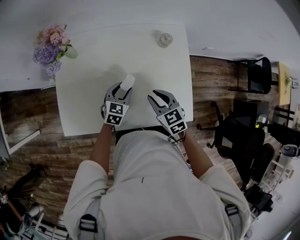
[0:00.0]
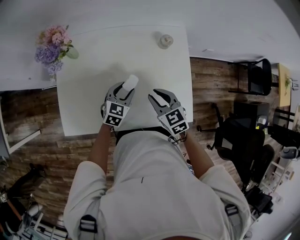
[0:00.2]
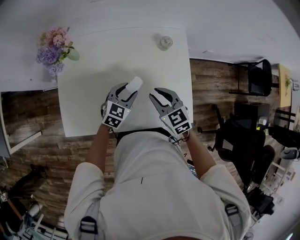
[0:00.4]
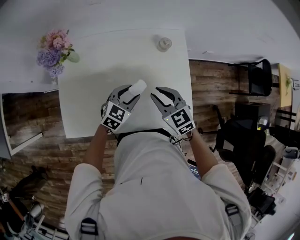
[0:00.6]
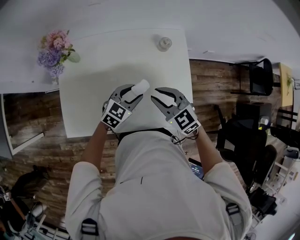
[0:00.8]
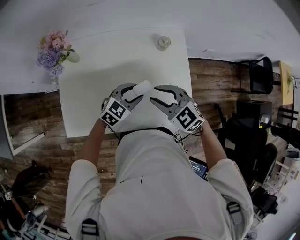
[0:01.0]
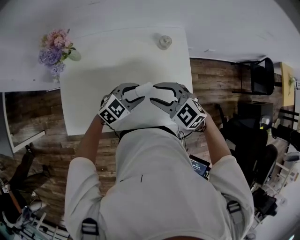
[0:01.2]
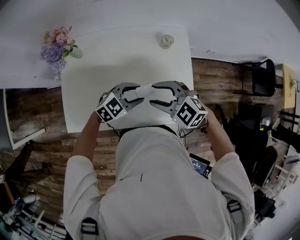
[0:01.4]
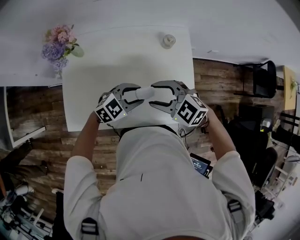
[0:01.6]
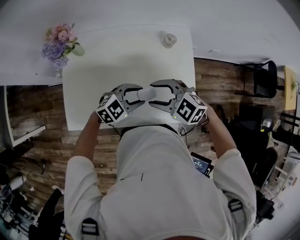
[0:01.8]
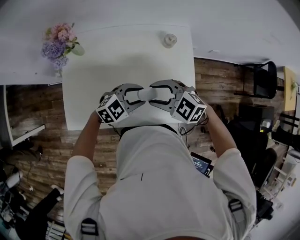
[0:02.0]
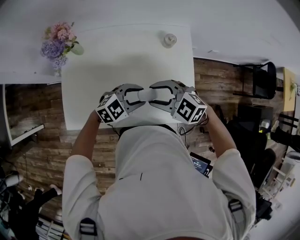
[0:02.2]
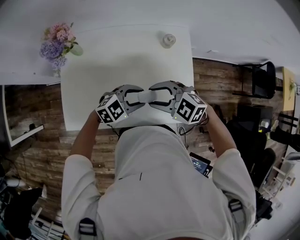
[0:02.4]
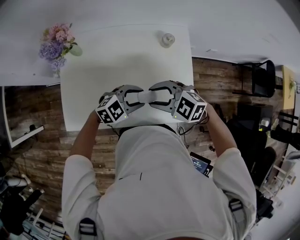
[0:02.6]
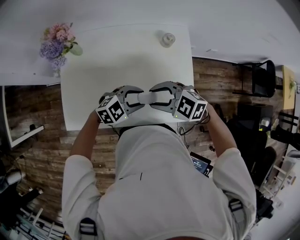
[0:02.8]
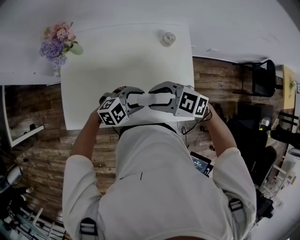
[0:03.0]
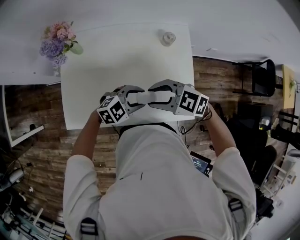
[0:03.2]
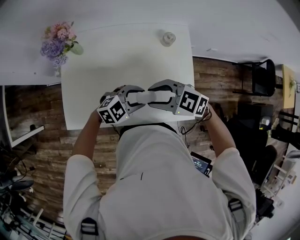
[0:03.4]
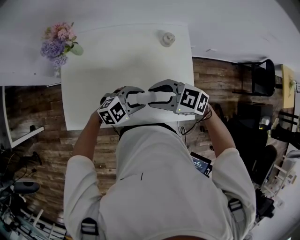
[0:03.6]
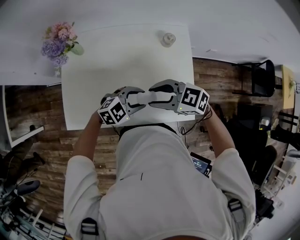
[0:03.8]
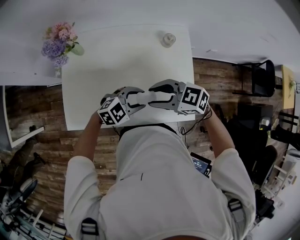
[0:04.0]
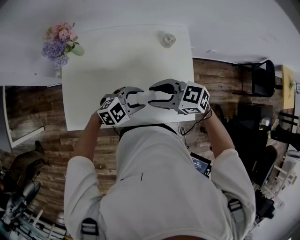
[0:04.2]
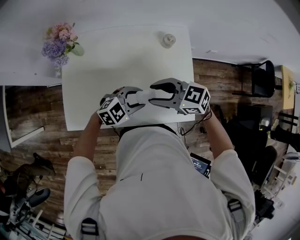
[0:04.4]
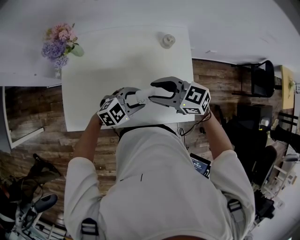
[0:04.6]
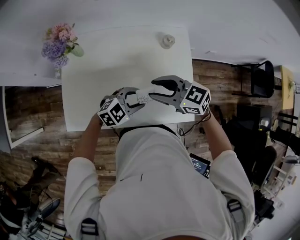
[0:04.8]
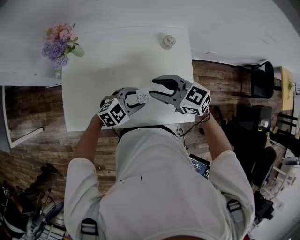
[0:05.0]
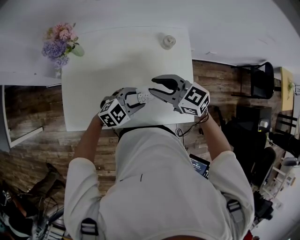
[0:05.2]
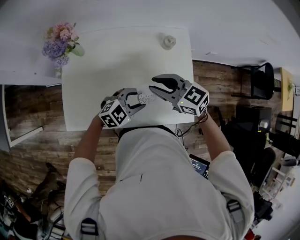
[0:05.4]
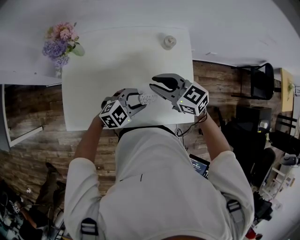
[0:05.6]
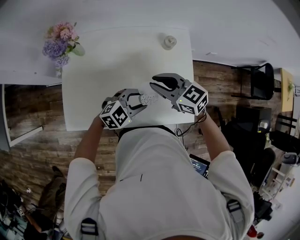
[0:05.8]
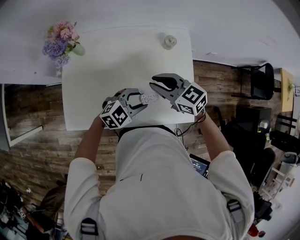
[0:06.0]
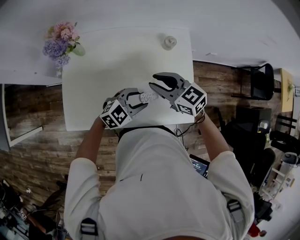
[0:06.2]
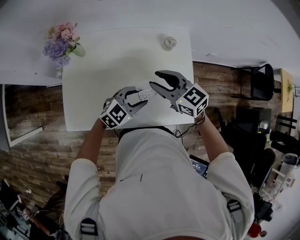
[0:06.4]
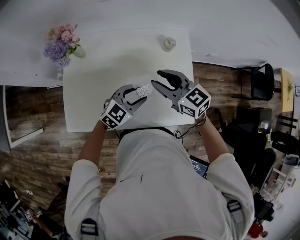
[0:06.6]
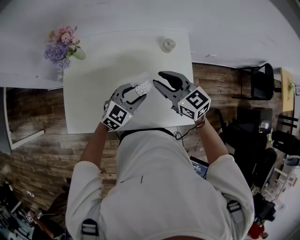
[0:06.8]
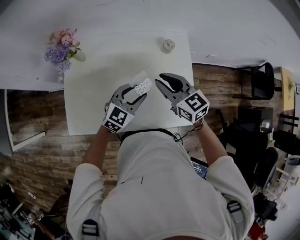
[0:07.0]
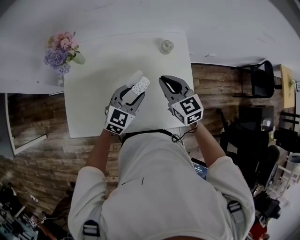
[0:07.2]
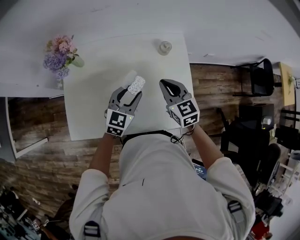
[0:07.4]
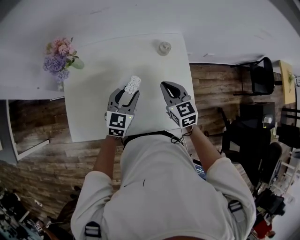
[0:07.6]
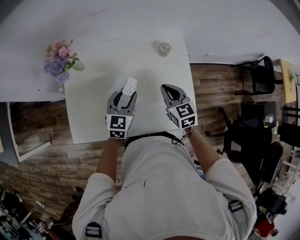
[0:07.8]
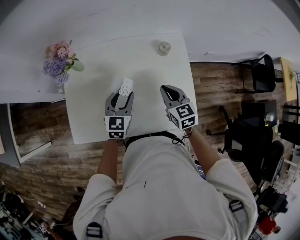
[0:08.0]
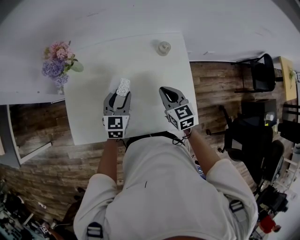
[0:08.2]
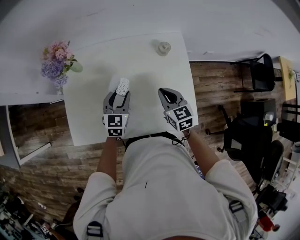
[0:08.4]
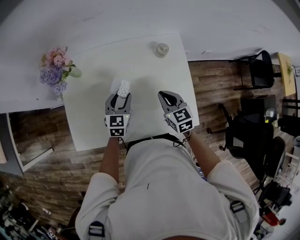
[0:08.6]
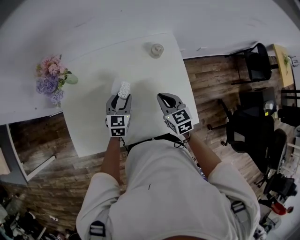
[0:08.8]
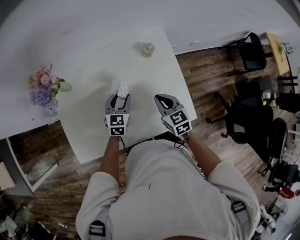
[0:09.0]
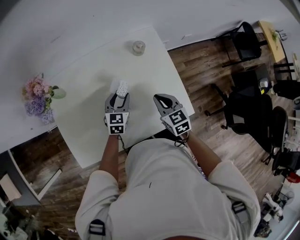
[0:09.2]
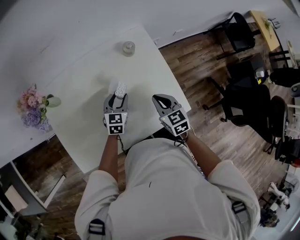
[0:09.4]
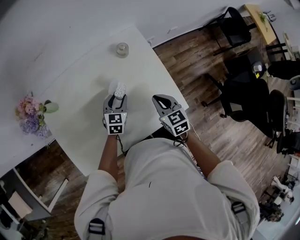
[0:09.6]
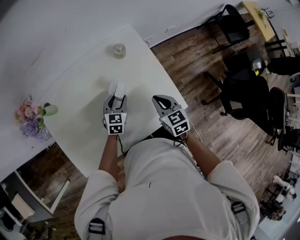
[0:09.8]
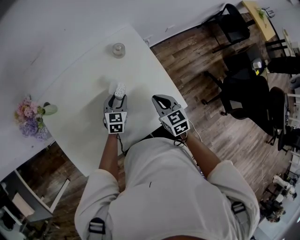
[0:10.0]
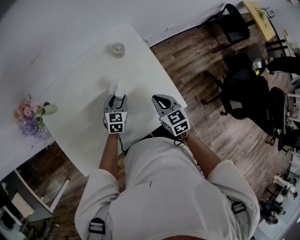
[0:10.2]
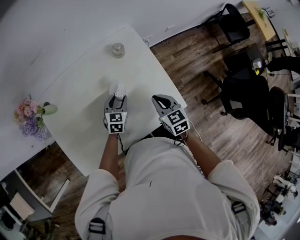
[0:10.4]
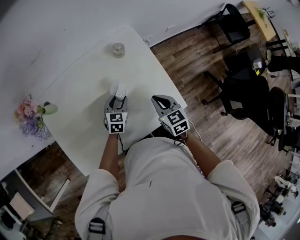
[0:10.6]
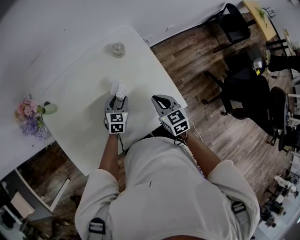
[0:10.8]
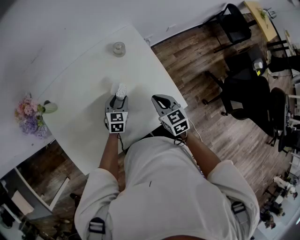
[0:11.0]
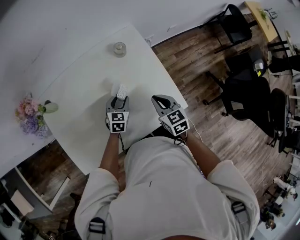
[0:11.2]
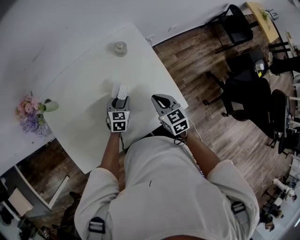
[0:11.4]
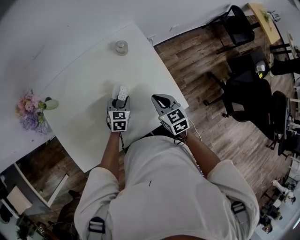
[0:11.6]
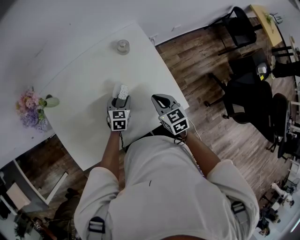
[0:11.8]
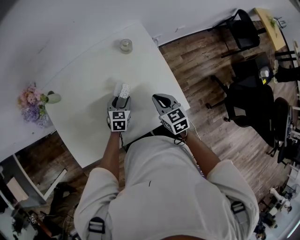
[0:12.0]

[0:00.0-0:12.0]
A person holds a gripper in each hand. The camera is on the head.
0:00.0 to 0:01.6: The grippers both shift upward by approximately 10 cm. The left gripper changes its angle by roughly 40 degrees, while the right gripper changes its angle by roughly 40 degrees, and opens.
0:01.6 to 0:03.0: The grippers make only small movements.
0:03.0 to 0:04.4: The grippers stay close to where they were, moving slightly.
0:04.4 to 0:06.0: The right gripper moves roughly 5 cm, and closes up.
0:06.0 to 0:07.6: The right gripper changes place by about 5 cm, and turns by approximately 30 degrees, while the left gripper moves about 10 cm, and rotates approximately 40 degrees.
0:07.6 to 0:09.0: The right gripper heads downward, covering approximately 5 cm. Meanwhile the left gripper moves downward, about 10 cm.
0:09.0 to 0:10.4: The left gripper goes some 10 cm to the right and downward, while the right gripper is displaced to the right by about 10 cm.
0:10.4 to 0:12.0: There are only small adjustments of the grippers.

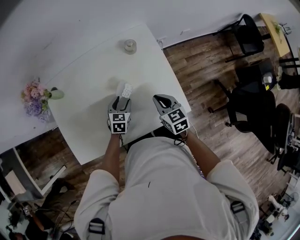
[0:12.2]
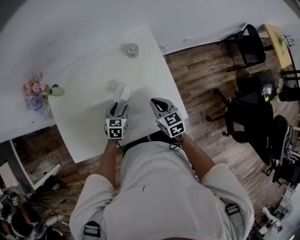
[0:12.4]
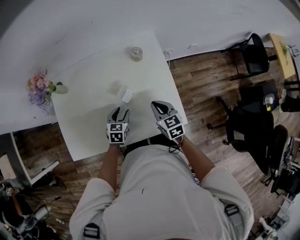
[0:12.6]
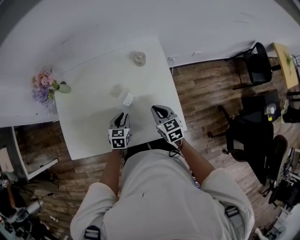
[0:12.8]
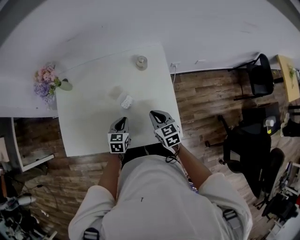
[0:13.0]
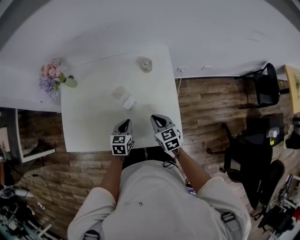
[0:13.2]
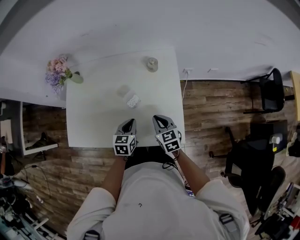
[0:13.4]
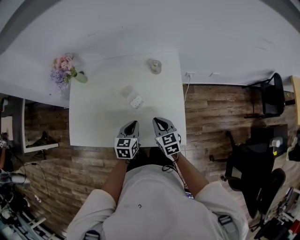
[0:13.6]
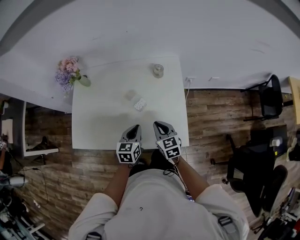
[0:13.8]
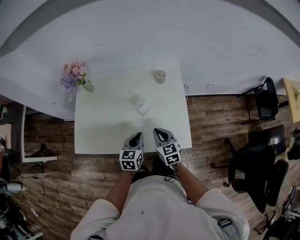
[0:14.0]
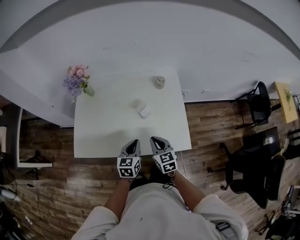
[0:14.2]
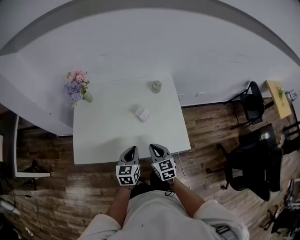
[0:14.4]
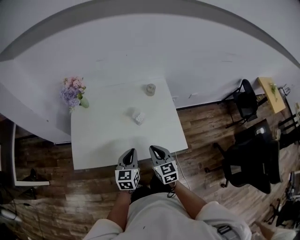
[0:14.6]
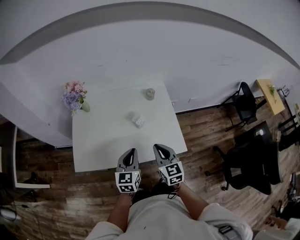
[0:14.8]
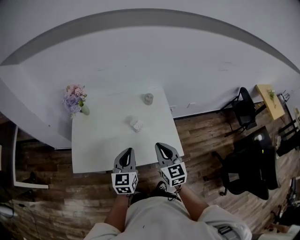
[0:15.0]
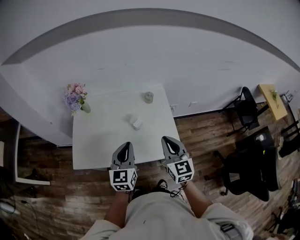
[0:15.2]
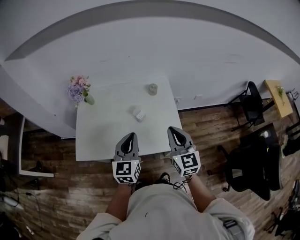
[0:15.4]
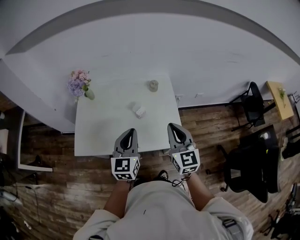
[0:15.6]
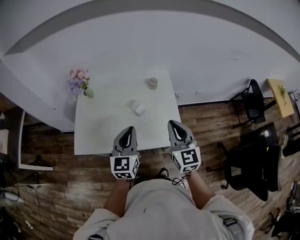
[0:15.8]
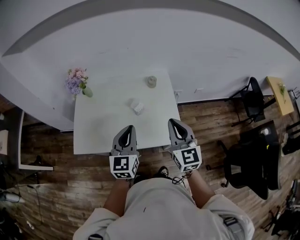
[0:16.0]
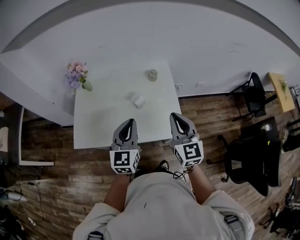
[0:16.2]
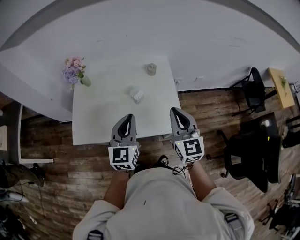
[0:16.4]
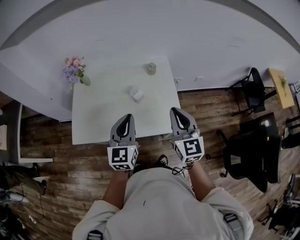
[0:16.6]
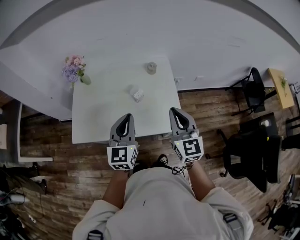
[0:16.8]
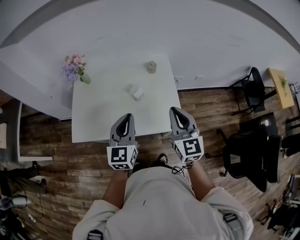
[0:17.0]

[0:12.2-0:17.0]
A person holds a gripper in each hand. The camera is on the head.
0:12.2 to 0:13.8: The left gripper heads upward and backward, covering about 15 cm, changes its angle by some 30 degrees, and closes up.
0:13.8 to 0:15.4: The grippers both shift upward and backward by roughly 25 cm. The right gripper turns by some 30 degrees. The left gripper turns by about 30 degrees.
0:15.4 to 0:17.0: The grippers stay close to where they were, moving slightly.

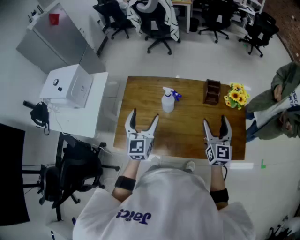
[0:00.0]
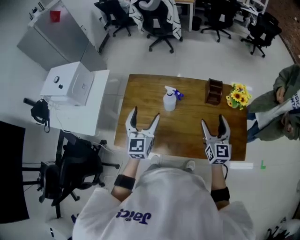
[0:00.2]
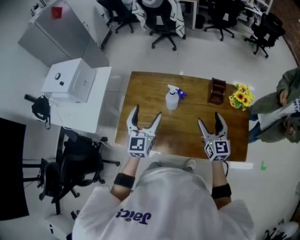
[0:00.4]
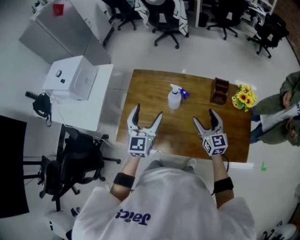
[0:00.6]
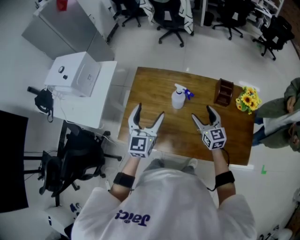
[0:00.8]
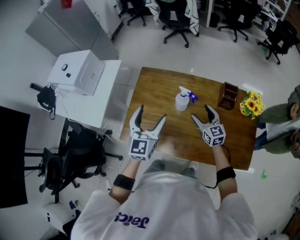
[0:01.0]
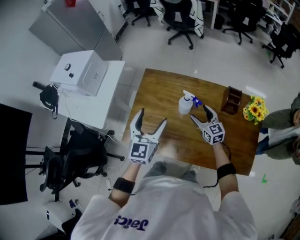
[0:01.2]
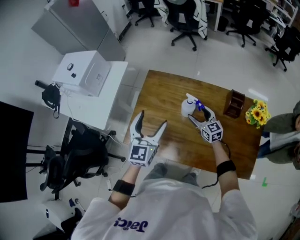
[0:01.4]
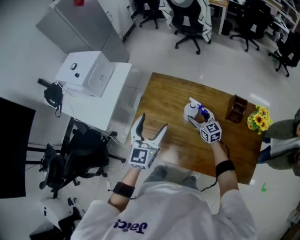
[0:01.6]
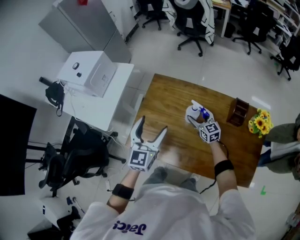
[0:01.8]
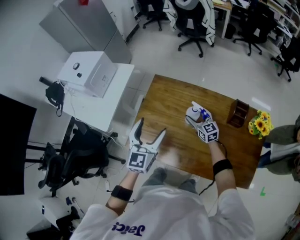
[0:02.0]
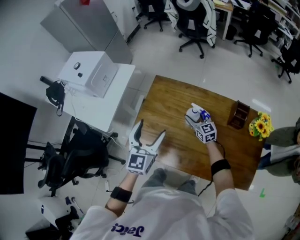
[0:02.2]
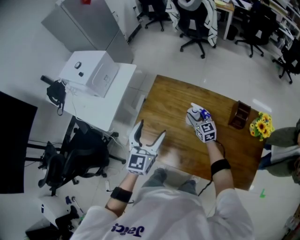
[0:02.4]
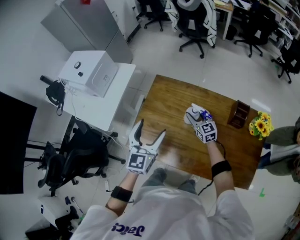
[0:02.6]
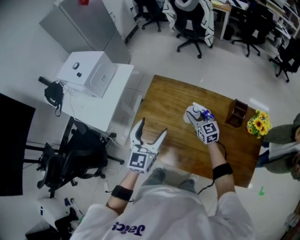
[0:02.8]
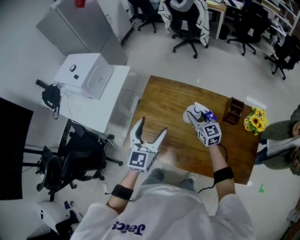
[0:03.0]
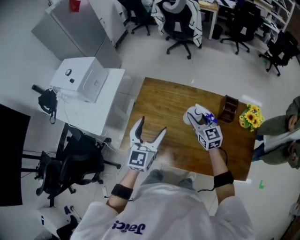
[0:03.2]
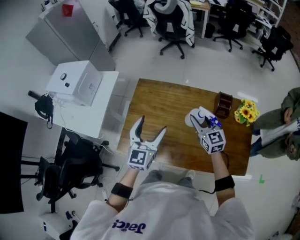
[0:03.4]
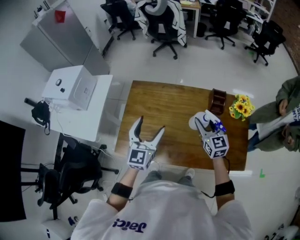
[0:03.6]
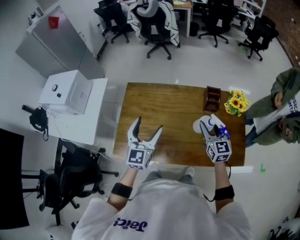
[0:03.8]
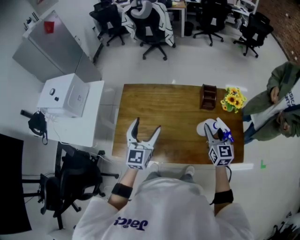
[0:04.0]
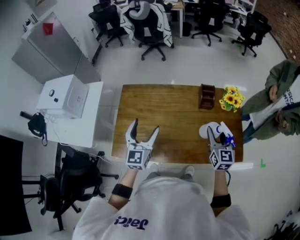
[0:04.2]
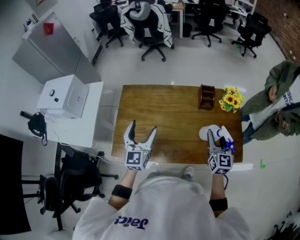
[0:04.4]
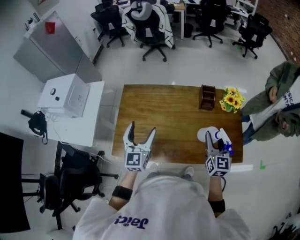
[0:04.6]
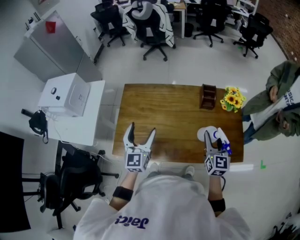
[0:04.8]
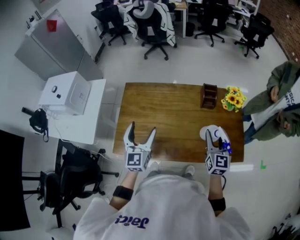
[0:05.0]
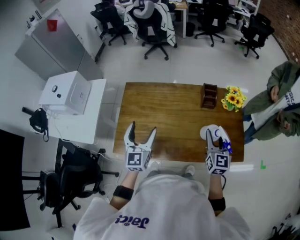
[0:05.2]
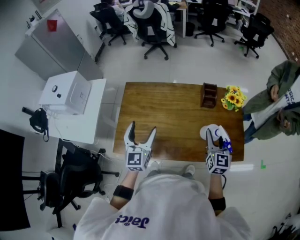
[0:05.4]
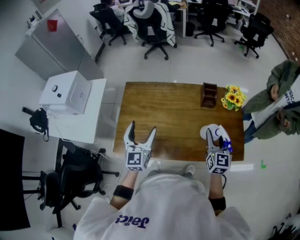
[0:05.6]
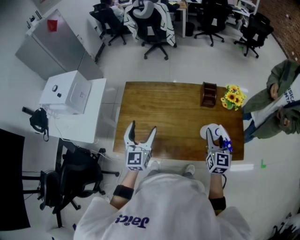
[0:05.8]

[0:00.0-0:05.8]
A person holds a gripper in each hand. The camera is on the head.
0:00.0 to 0:01.4: The right gripper goes approximately 30 cm downward, forward and to the left, and swivels roughly 40 degrees.
0:01.4 to 0:02.8: The right gripper ends up approximately 5 cm from where it was.
0:02.8 to 0:04.4: The left gripper ends up about 5 cm from where it was. Meanwhile the right gripper ends up approximately 35 cm from where it was, and rotates about 40 degrees.
0:04.4 to 0:05.8: The grippers move only a little.

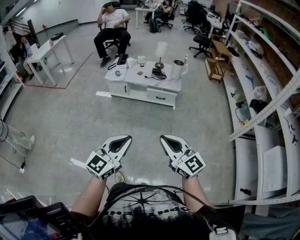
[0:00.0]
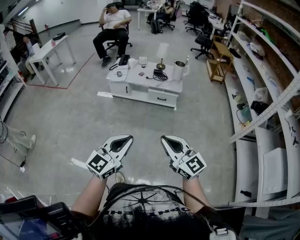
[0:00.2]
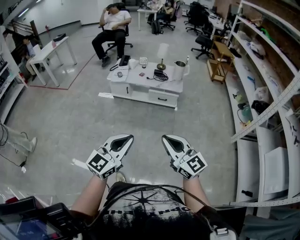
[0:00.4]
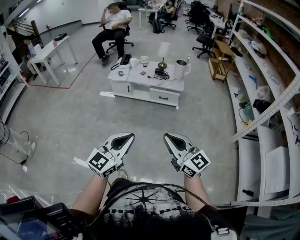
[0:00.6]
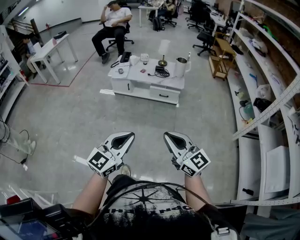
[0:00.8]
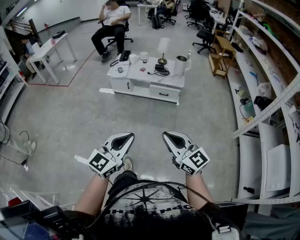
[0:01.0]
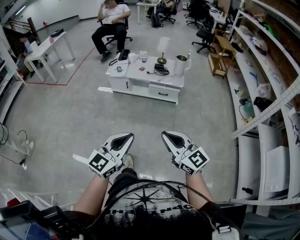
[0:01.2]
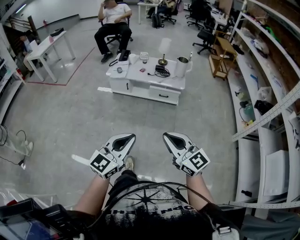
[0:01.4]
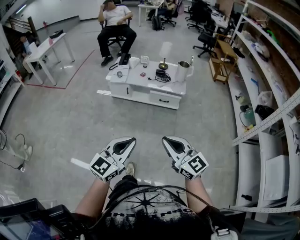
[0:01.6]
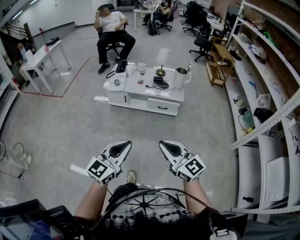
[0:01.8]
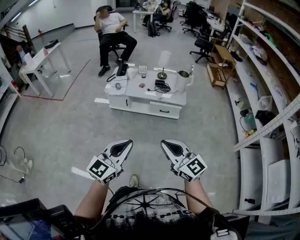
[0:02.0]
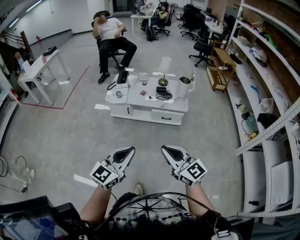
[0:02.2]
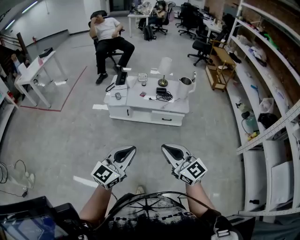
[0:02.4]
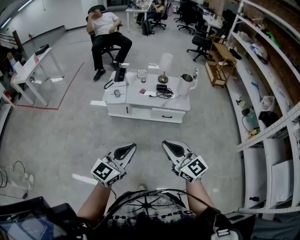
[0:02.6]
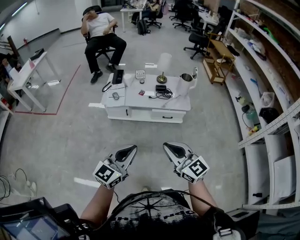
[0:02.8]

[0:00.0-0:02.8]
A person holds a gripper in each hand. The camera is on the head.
0:00.0 to 0:01.4: The two grippers go some 5 cm forward.
0:01.4 to 0:02.8: Both grippers move forward and to the left, some 30 cm.
